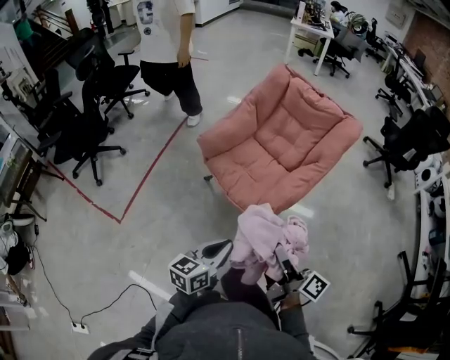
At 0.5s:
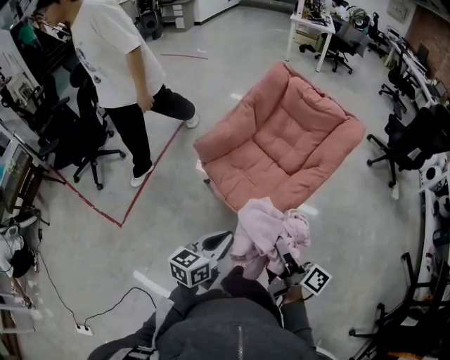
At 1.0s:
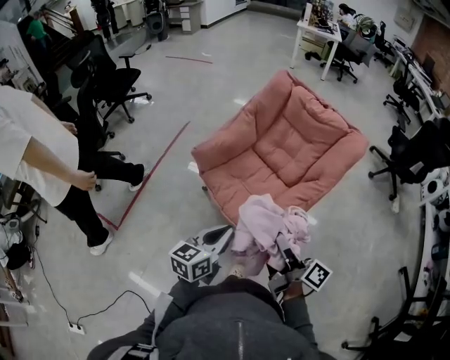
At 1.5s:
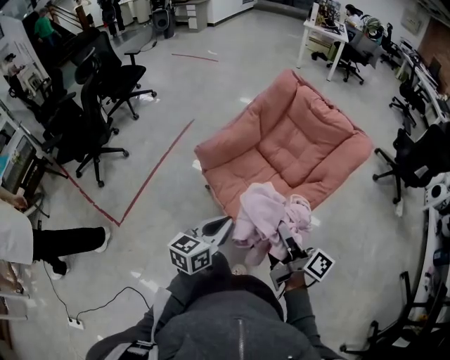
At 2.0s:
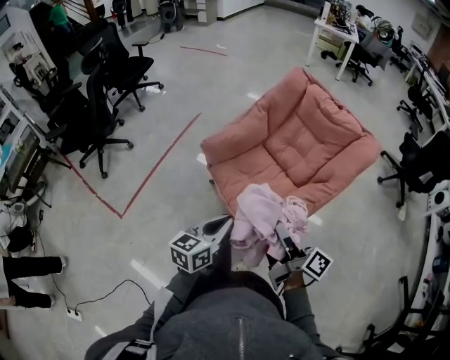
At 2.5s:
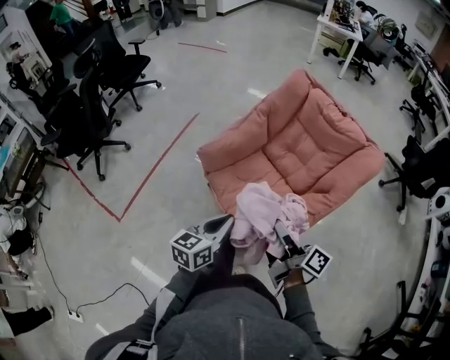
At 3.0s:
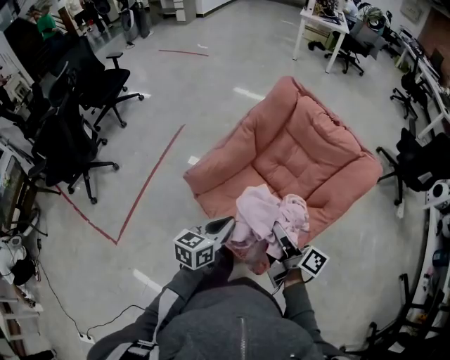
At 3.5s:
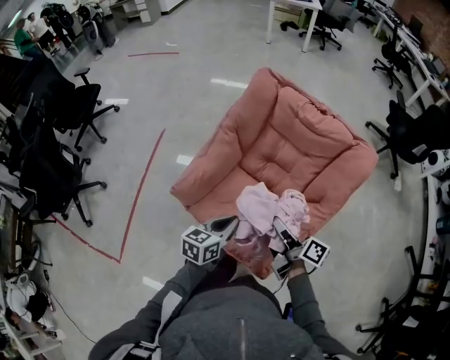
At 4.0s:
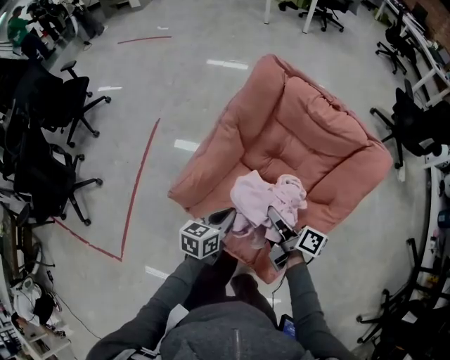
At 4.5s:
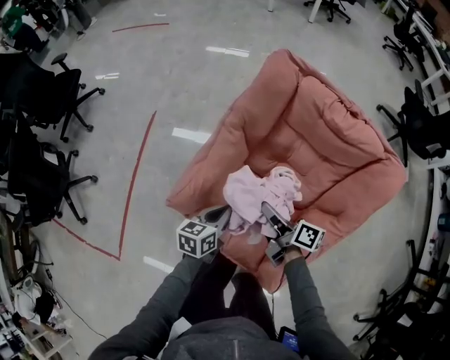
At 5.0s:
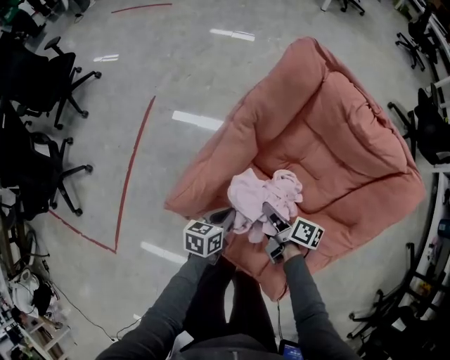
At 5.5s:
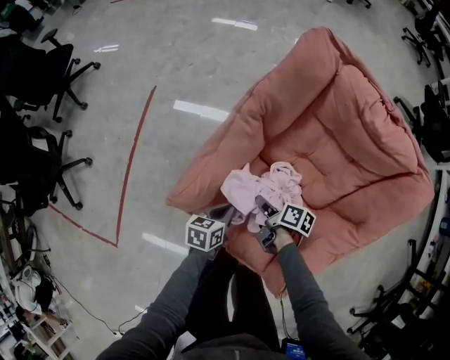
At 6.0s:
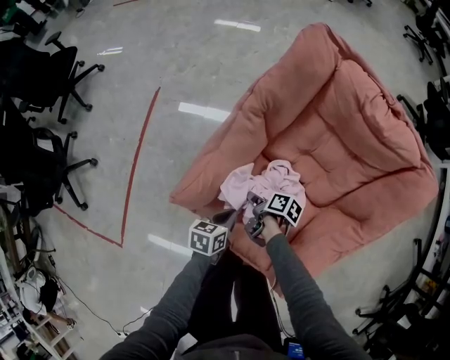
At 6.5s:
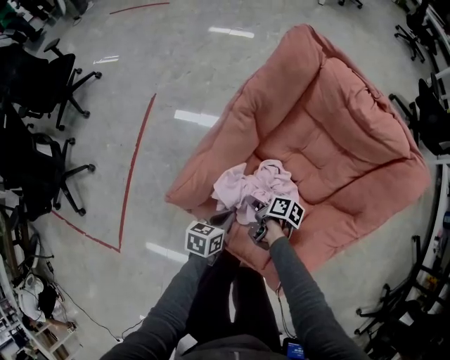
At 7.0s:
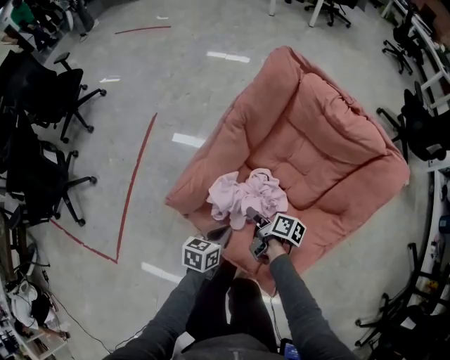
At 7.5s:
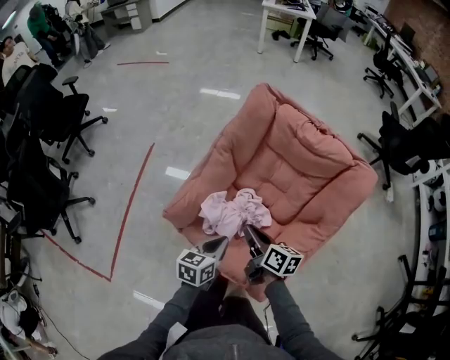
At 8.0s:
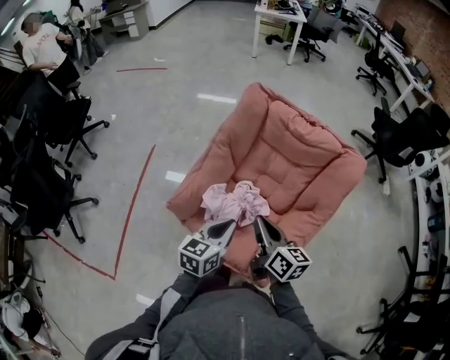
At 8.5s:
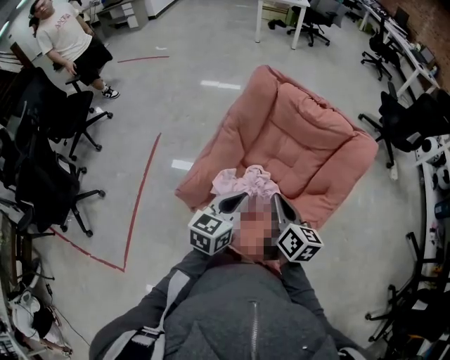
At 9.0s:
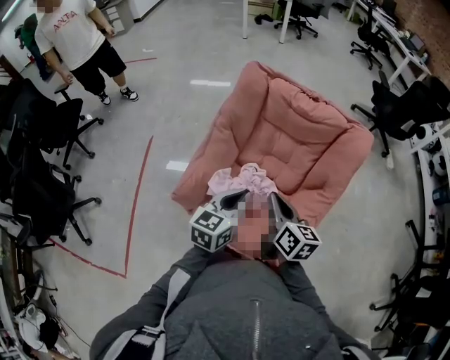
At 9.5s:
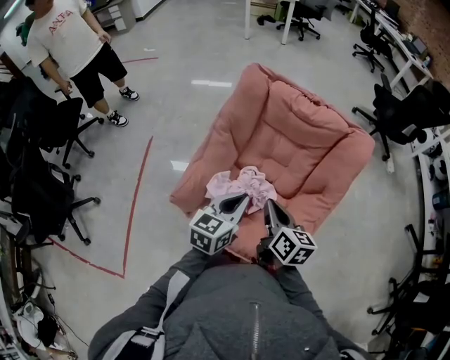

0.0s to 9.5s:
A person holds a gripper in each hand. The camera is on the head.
0.0s to 2.0s: Both grippers travel together forward, about 15 cm.
2.0s to 4.0s: The two grippers go approximately 30 cm forward. The left gripper turns by roughly 20 degrees.
4.0s to 5.5s: The grippers both shift downward by roughly 20 cm. The right gripper tips its fingers downward by roughly 30 degrees.
5.5s to 7.5s: The grippers both shift upward and backward by roughly 20 cm. The right gripper rotates about 30 degrees, and opens, then closes again.
7.5s to 9.5s: The two grippers go approximately 10 cm upward. The right gripper swivels roughly 20 degrees.

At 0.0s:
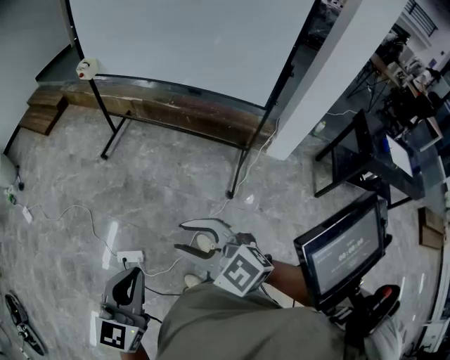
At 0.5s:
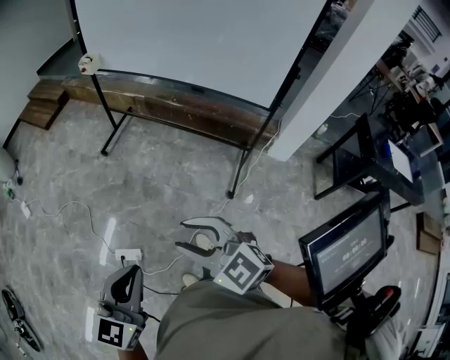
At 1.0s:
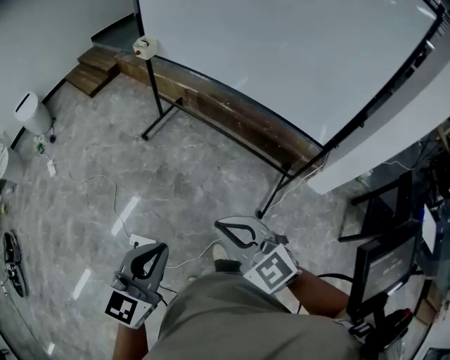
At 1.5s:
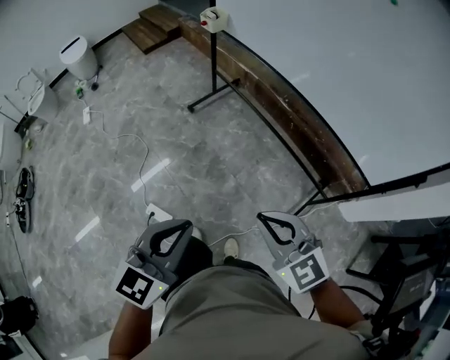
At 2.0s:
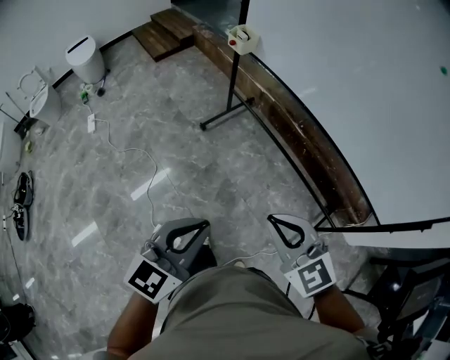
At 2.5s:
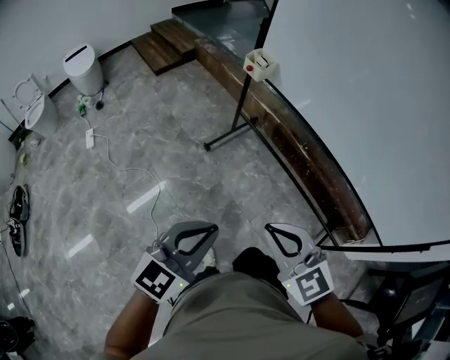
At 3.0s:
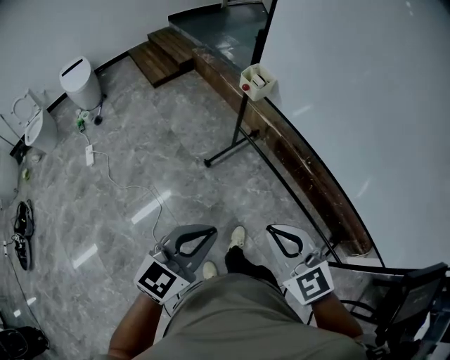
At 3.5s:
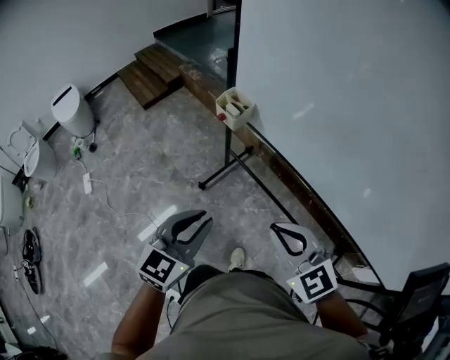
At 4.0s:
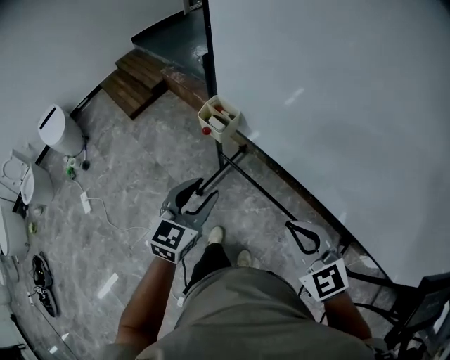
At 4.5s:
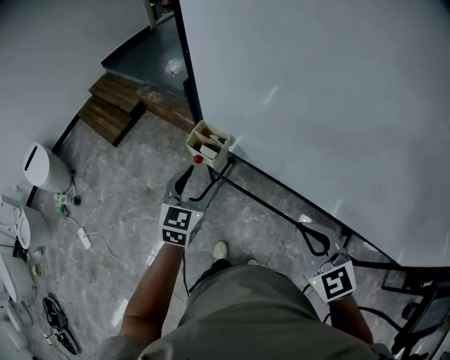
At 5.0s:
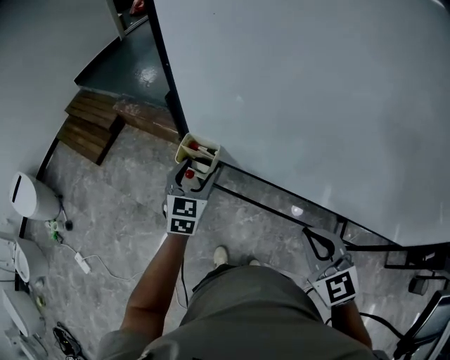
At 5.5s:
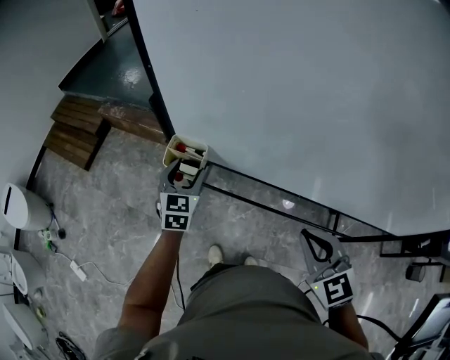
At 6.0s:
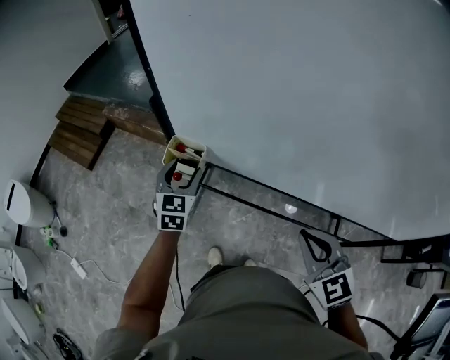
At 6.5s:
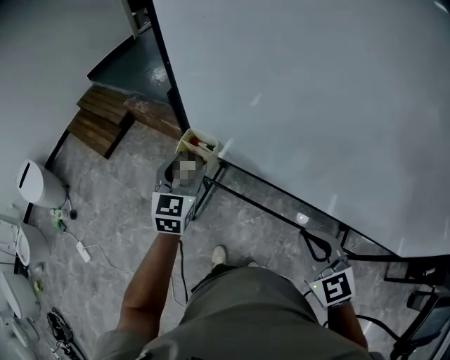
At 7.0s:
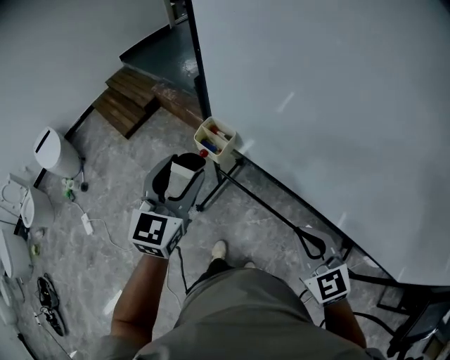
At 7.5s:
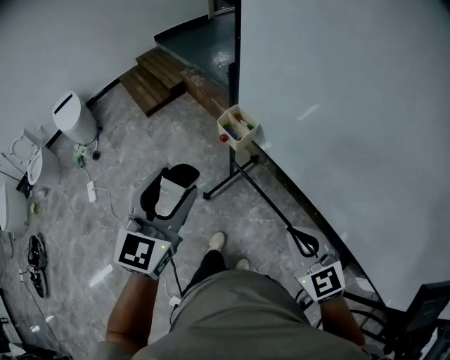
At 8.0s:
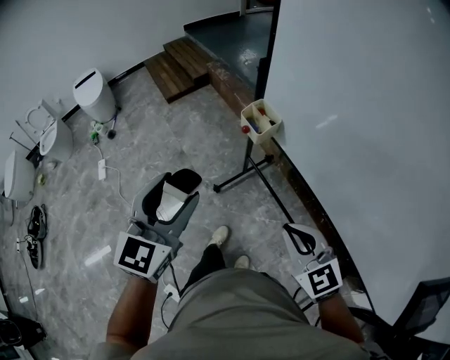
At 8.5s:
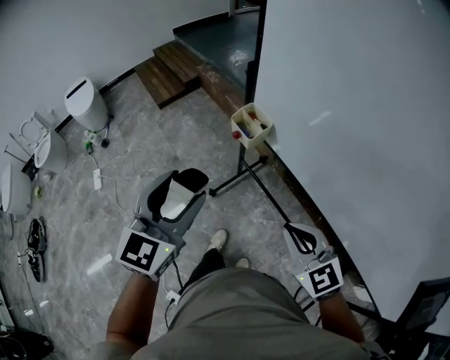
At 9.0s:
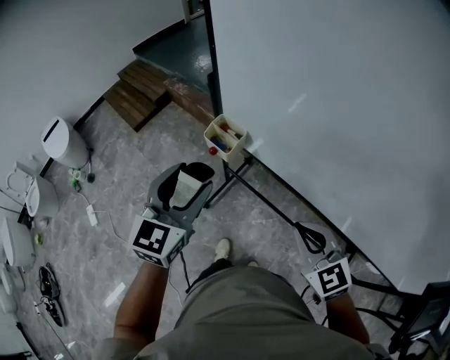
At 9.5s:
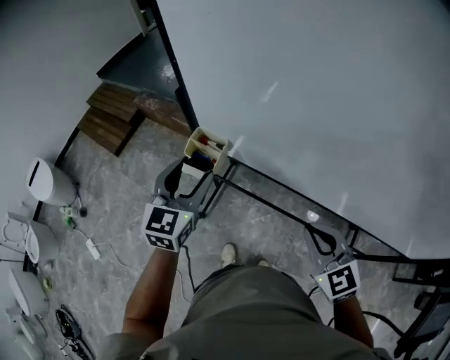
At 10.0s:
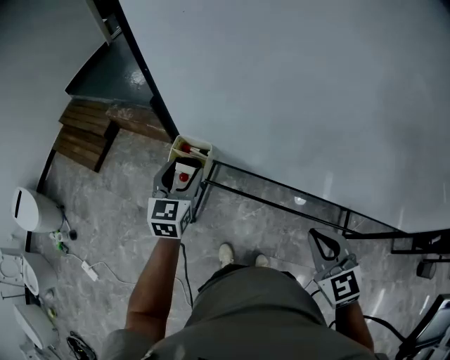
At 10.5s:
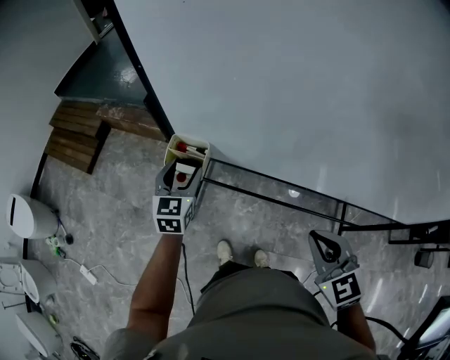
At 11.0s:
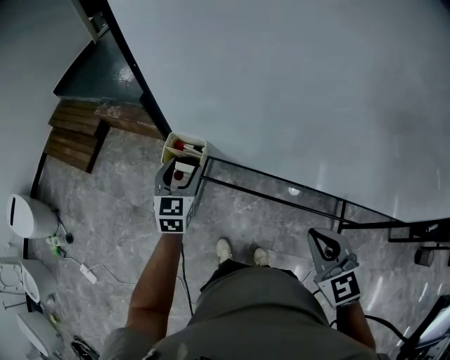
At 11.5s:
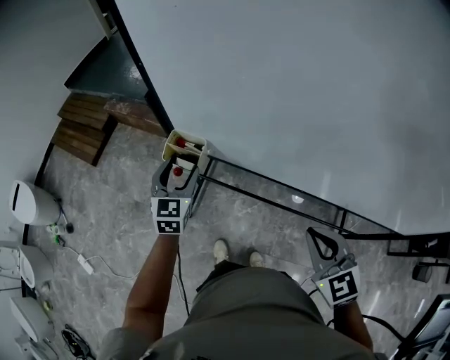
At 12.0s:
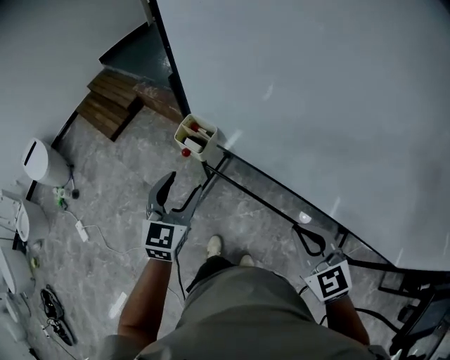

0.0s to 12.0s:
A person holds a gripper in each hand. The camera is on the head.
0.0s to 2.0s: Both grippers travel together forward, roughly 35 cm. The right gripper closes.
2.0s to 4.0s: The pair of grippers is taken forward, approximately 50 cm. The left gripper opens up.
4.0s to 6.0s: The right gripper ends up about 5 cm from where it was, and rotates some 30 degrees. The left gripper goes some 20 cm forward.
6.0s to 8.0s: The left gripper moves roughly 35 cm, and changes its angle by roughly 30 degrees; the right gripper changes place by some 10 cm, and changes its angle by some 40 degrees.
8.0s to 10.0s: The right gripper moves some 10 cm, and rotates about 40 degrees; the left gripper moves approximately 35 cm, and turns by some 30 degrees.
10.0s to 12.0s: The left gripper heads backward, covering approximately 15 cm.

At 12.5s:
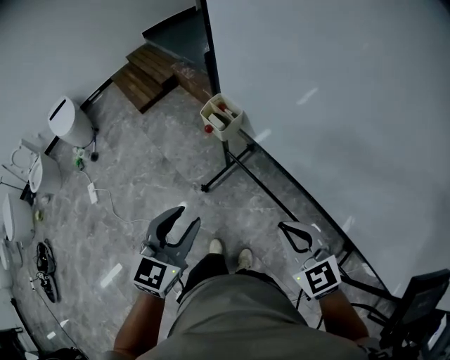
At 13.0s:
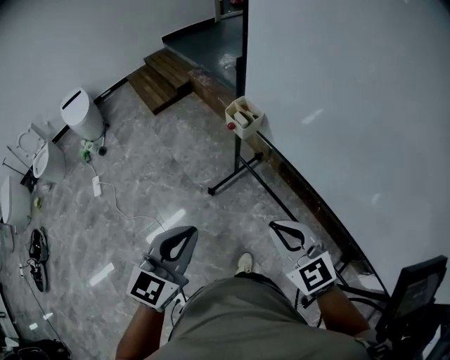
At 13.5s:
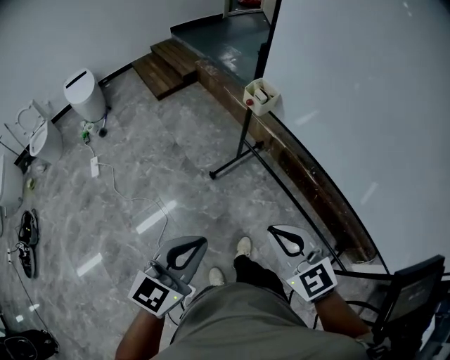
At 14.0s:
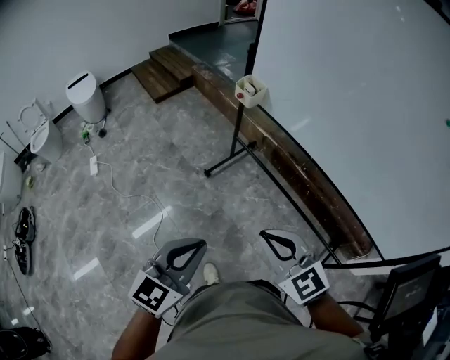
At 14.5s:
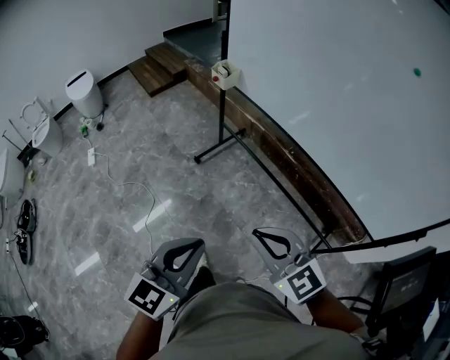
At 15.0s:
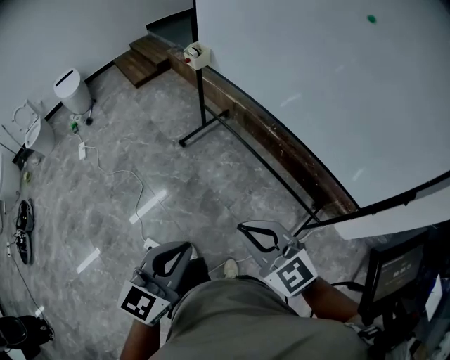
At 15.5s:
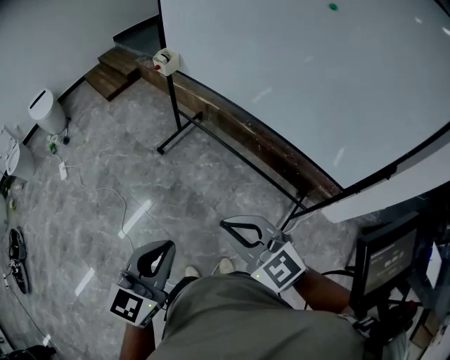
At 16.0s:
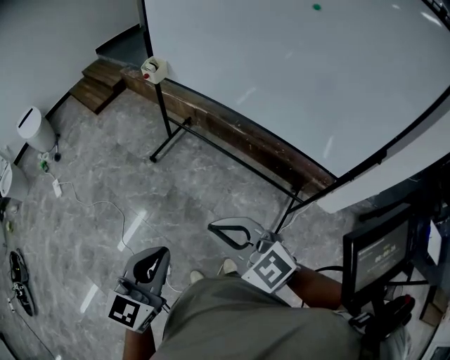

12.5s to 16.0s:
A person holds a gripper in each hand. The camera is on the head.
12.5s to 14.5s: The pair of grippers is taken backward, about 40 cm. The left gripper closes its fingers.
14.5s to 16.0s: Both grippers travel together backward, approximately 10 cm.

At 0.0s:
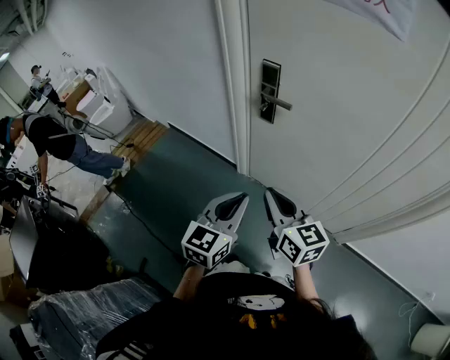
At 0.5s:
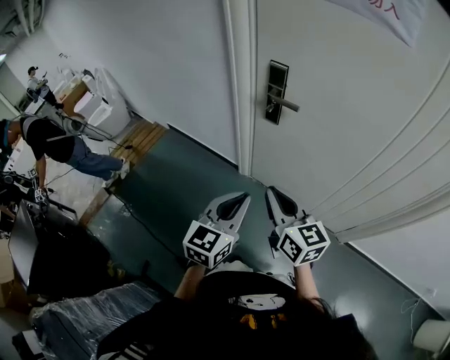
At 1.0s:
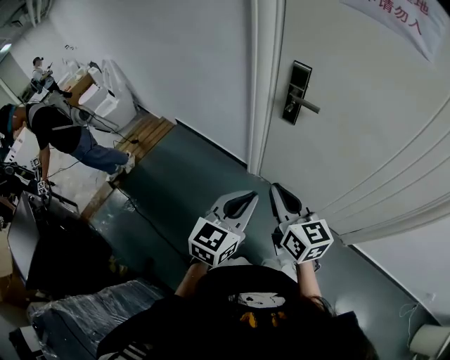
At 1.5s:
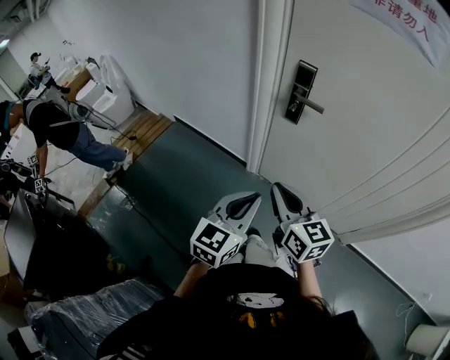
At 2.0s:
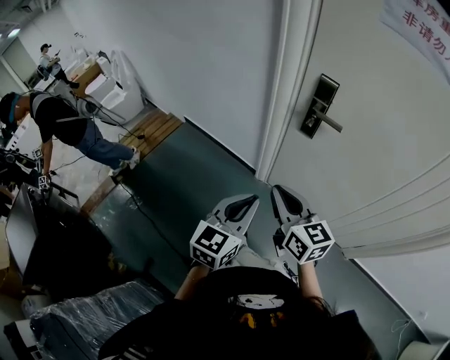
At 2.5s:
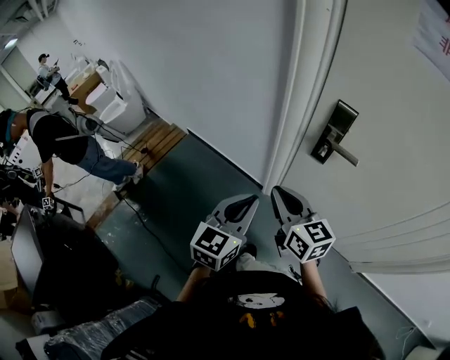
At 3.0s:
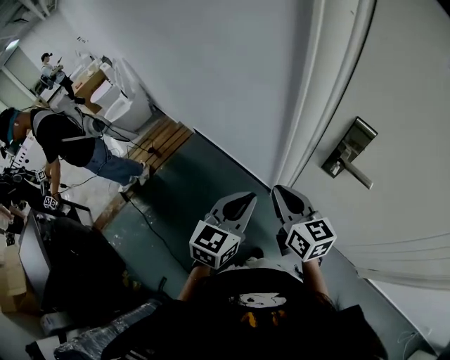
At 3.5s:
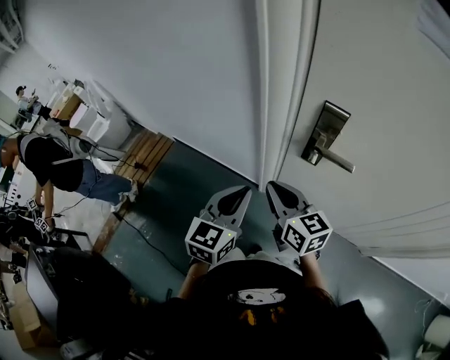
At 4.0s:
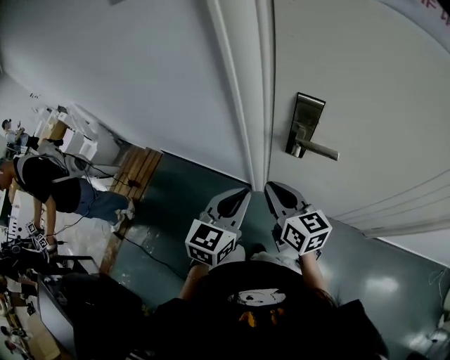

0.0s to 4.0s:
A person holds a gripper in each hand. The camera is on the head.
0.0s to 2.0s: Both grippers travel together to the left and forward, some 15 cm.
2.0s to 4.0s: The two grippers go roughly 20 cm forward.
